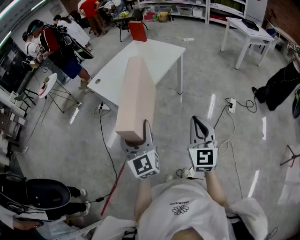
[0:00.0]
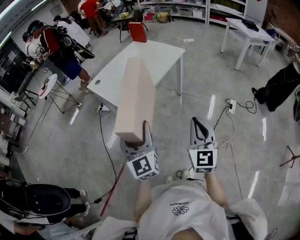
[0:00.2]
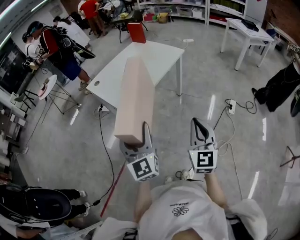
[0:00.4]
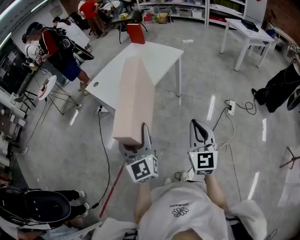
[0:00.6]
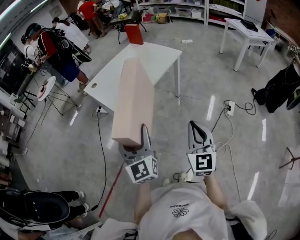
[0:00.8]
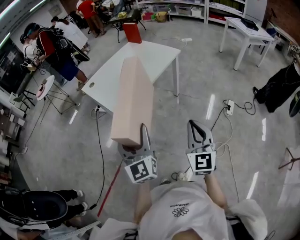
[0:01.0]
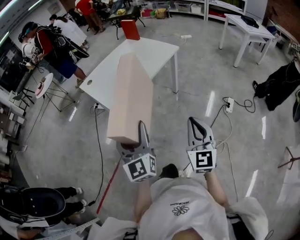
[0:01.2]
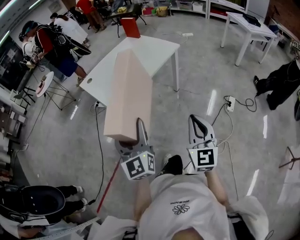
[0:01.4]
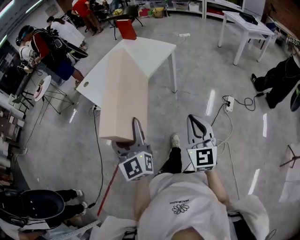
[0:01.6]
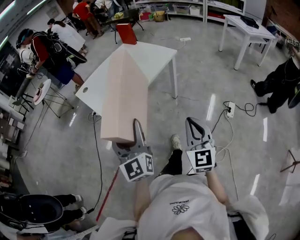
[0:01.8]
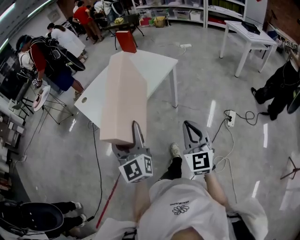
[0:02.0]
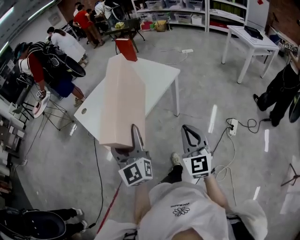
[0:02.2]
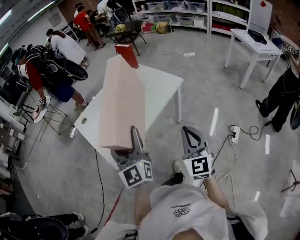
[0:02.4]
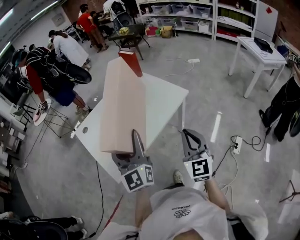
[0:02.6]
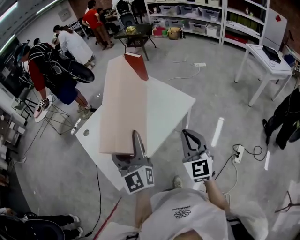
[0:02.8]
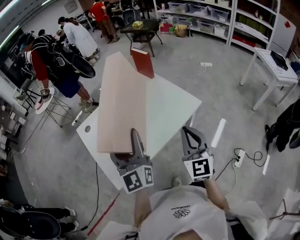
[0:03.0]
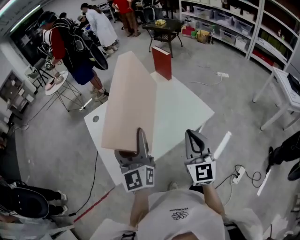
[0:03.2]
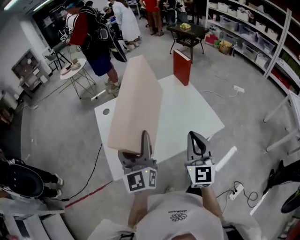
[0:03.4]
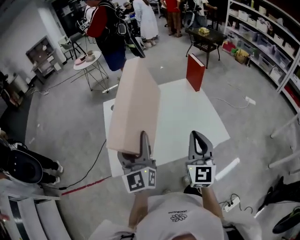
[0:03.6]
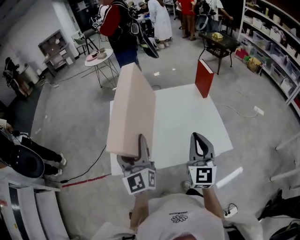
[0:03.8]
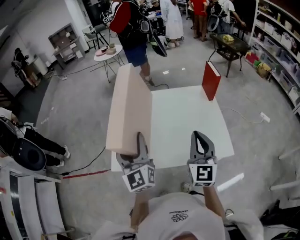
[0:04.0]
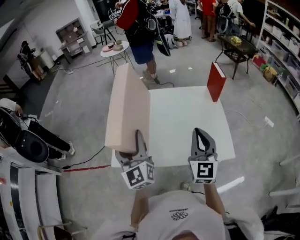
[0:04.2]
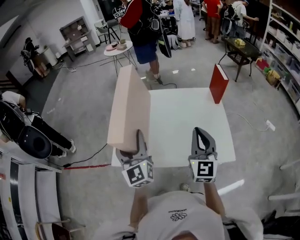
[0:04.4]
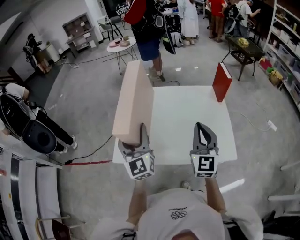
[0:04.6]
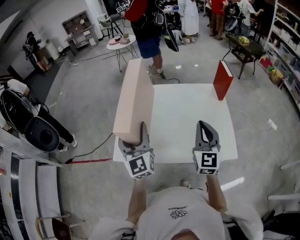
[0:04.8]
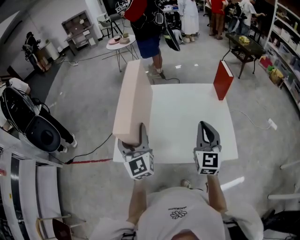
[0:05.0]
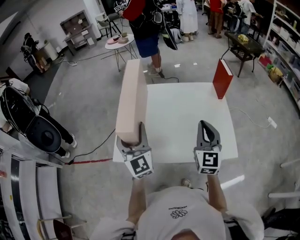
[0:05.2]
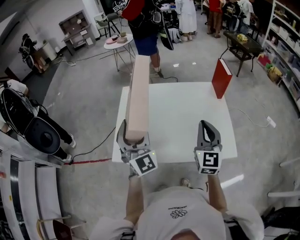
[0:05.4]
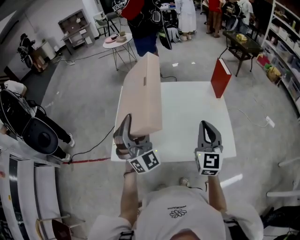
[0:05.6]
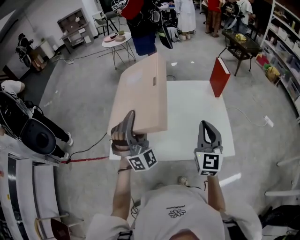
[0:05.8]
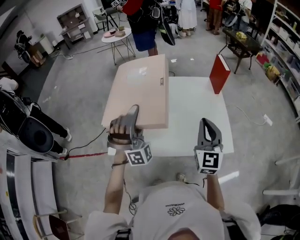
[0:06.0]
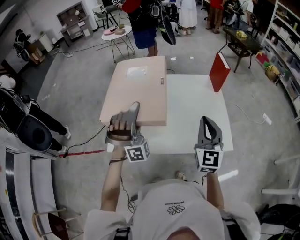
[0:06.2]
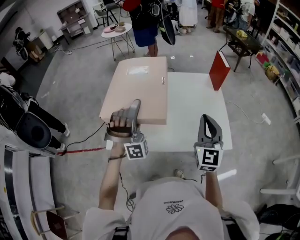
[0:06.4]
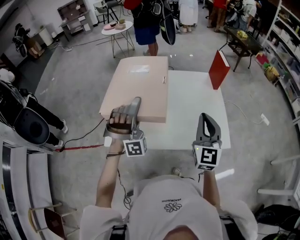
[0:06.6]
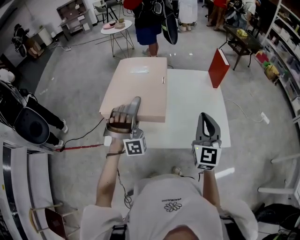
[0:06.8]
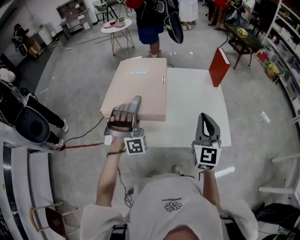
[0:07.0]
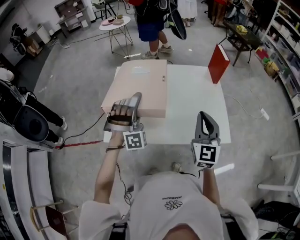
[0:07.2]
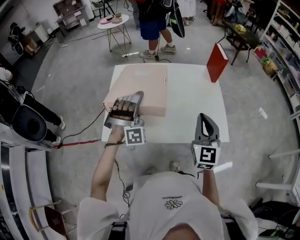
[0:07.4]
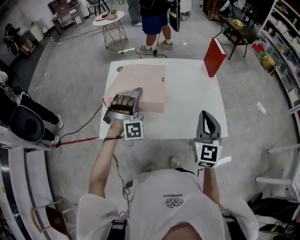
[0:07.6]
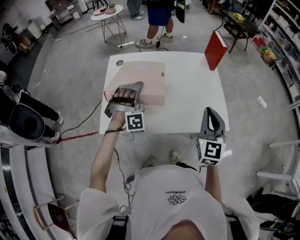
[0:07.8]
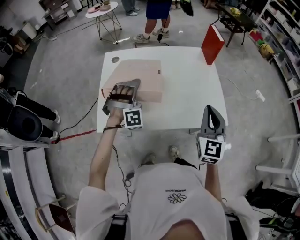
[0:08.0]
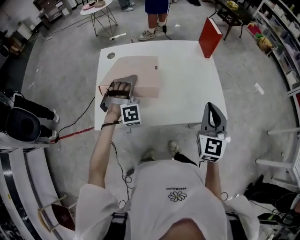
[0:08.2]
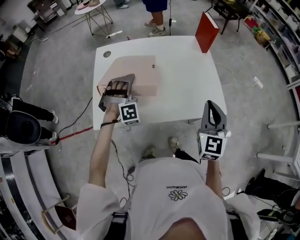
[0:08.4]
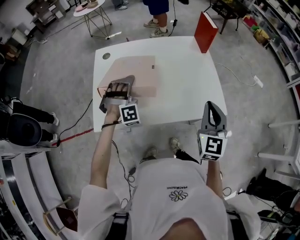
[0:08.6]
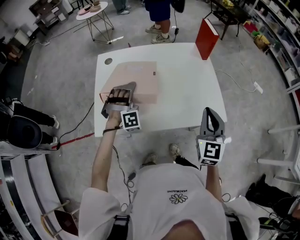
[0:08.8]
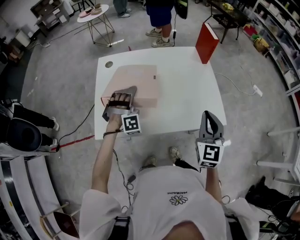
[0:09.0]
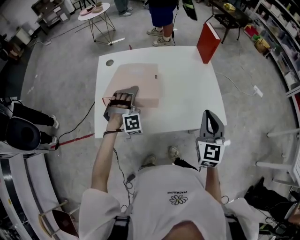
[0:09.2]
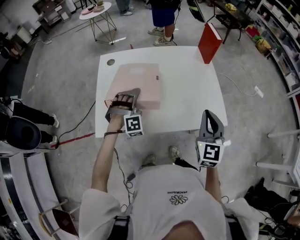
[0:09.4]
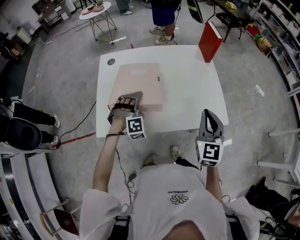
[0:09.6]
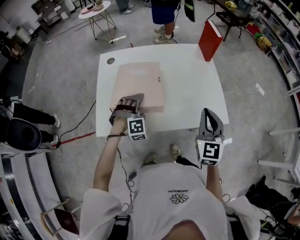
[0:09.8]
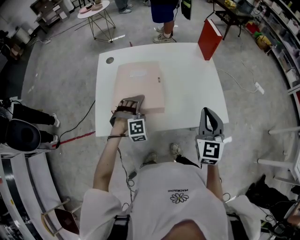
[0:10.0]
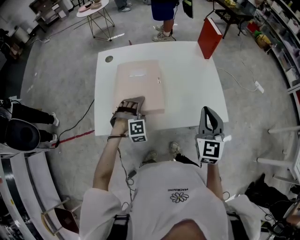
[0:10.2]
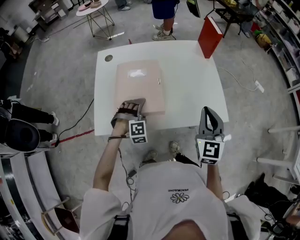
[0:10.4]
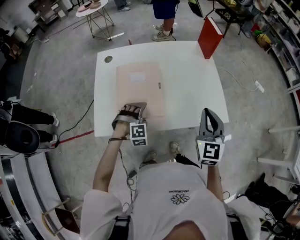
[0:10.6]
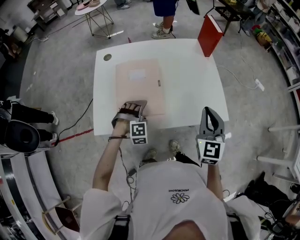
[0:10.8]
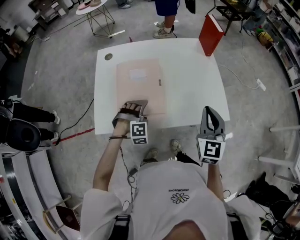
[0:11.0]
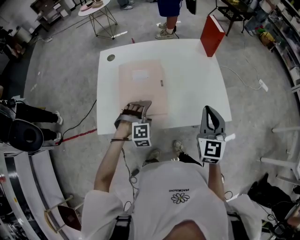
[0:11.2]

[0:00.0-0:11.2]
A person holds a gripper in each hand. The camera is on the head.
0:00.0 to 0:01.6: The right gripper heads to the right and forward, covering about 10 cm. Meanwhile the left gripper travels to the right by about 10 cm.
0:01.6 to 0:03.2: The two grippers travel together, forward, roughly 50 cm. The right gripper turns by some 20 degrees.
0:03.2 to 0:04.8: The right gripper shifts by about 20 cm, and swivels approximately 30 degrees, while the left gripper changes place by some 10 cm, and changes its angle by approximately 40 degrees.
0:04.8 to 0:06.4: The left gripper shifts by some 5 cm, and rolls clockwise, seen from behind, by approximately 90 degrees.
0:06.4 to 0:08.0: The right gripper changes place by about 10 cm. The left gripper shifts approximately 15 cm downward, and turns by roughly 30 degrees.
0:08.0 to 0:09.6: The left gripper heads downward, covering some 10 cm.
0:09.6 to 0:11.2: The left gripper heads backward, covering roughly 5 cm.

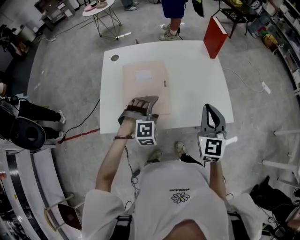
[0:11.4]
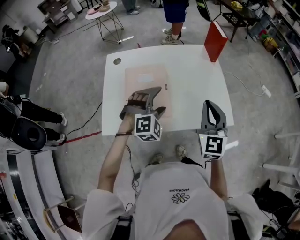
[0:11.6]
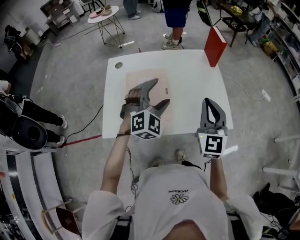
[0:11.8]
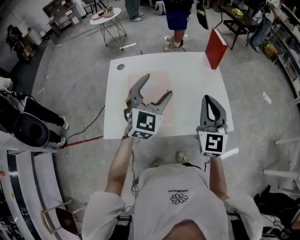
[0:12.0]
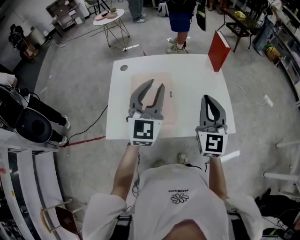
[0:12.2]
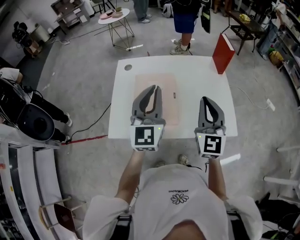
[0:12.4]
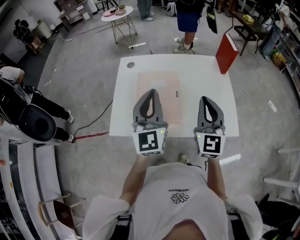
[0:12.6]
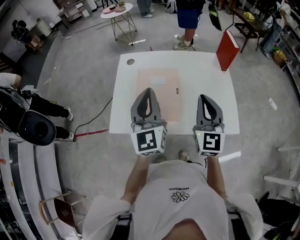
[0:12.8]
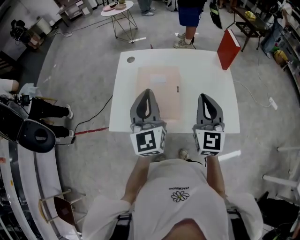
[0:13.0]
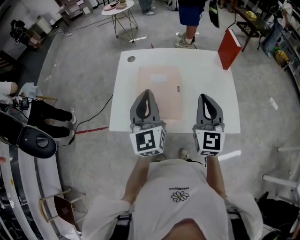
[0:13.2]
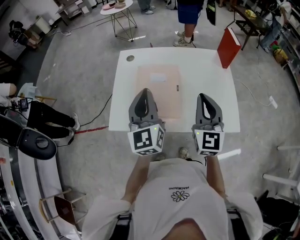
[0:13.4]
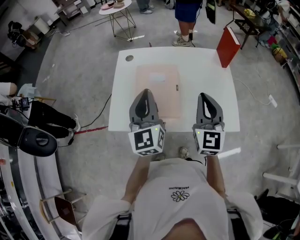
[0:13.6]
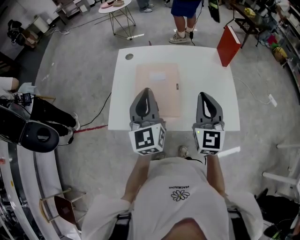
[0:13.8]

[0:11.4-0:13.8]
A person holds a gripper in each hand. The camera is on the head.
0:11.4 to 0:12.6: The right gripper shifts about 10 cm upward and to the left, while the left gripper moves upward, some 25 cm, tilts its fingers about 60 degrees upward, and closes up.
0:12.6 to 0:13.8: The grippers stay close to where they were, moving slightly.

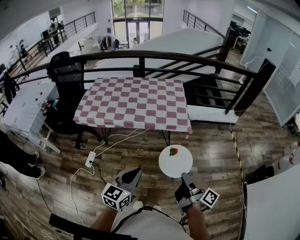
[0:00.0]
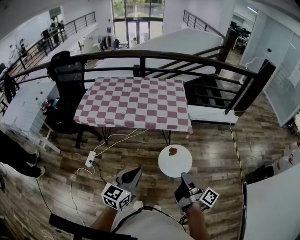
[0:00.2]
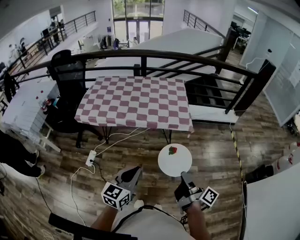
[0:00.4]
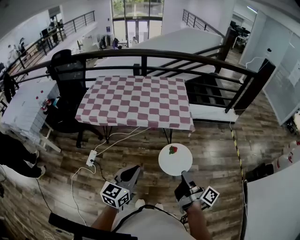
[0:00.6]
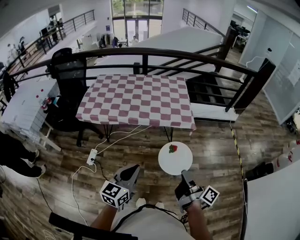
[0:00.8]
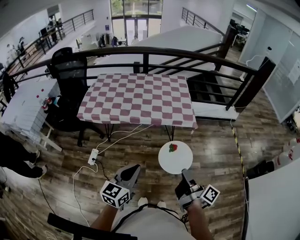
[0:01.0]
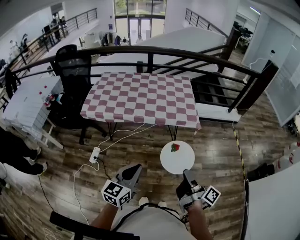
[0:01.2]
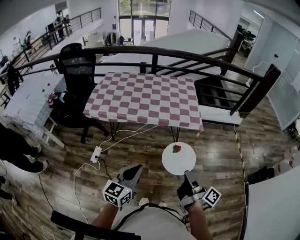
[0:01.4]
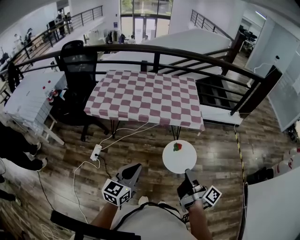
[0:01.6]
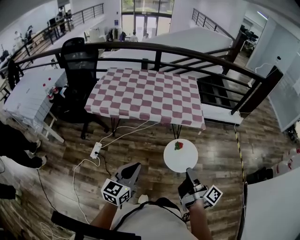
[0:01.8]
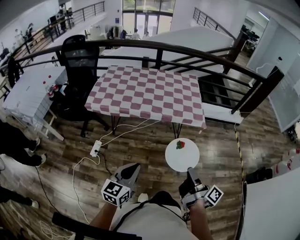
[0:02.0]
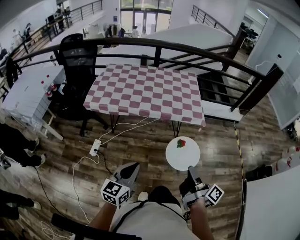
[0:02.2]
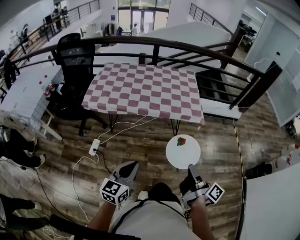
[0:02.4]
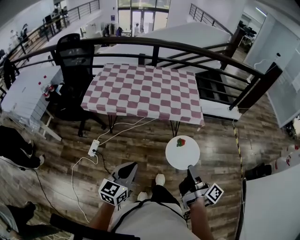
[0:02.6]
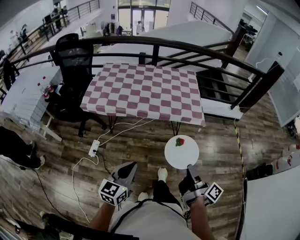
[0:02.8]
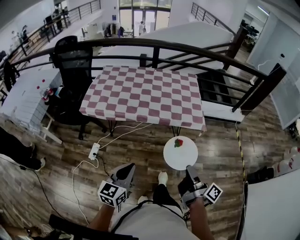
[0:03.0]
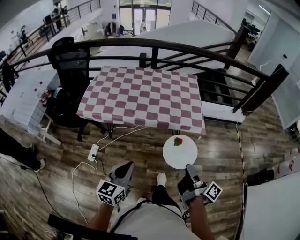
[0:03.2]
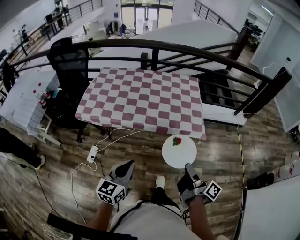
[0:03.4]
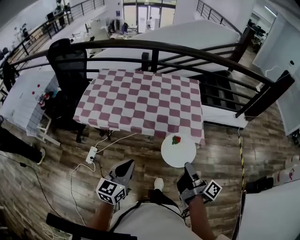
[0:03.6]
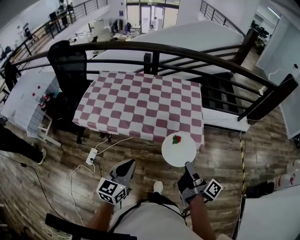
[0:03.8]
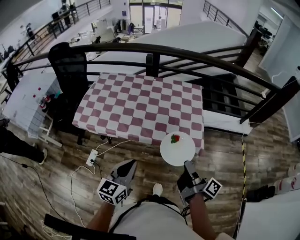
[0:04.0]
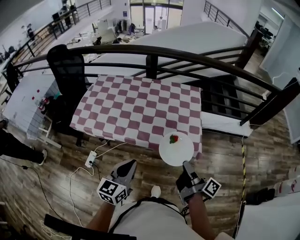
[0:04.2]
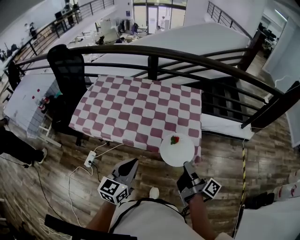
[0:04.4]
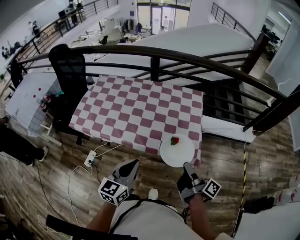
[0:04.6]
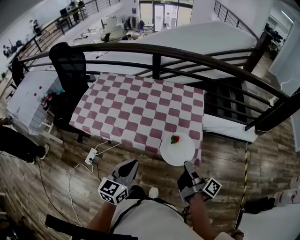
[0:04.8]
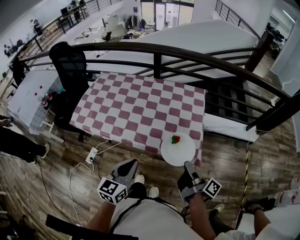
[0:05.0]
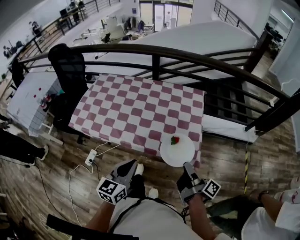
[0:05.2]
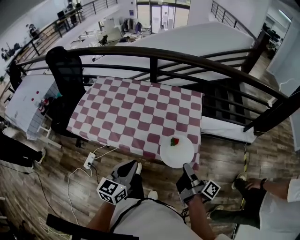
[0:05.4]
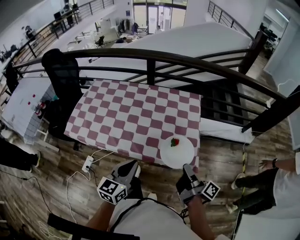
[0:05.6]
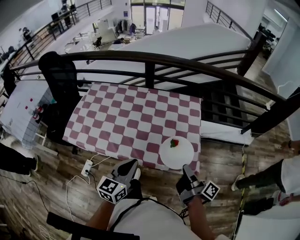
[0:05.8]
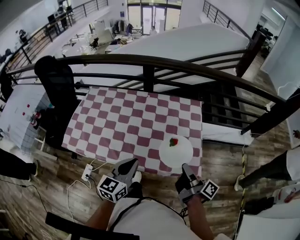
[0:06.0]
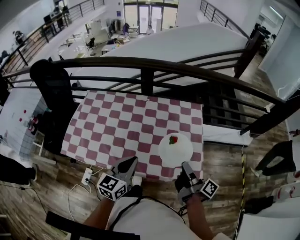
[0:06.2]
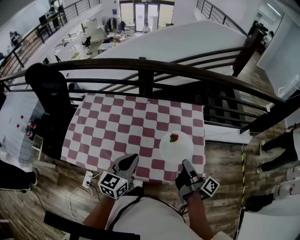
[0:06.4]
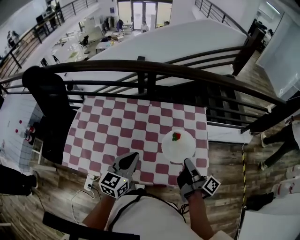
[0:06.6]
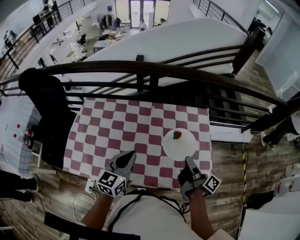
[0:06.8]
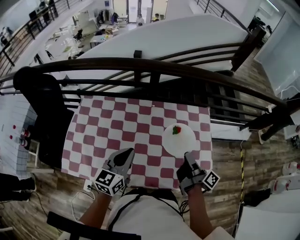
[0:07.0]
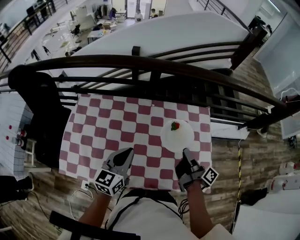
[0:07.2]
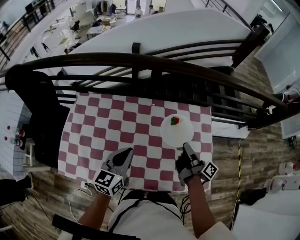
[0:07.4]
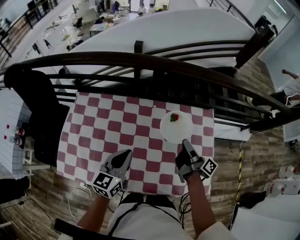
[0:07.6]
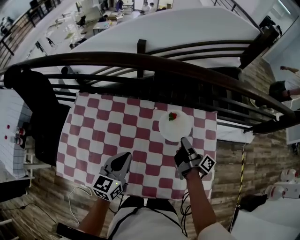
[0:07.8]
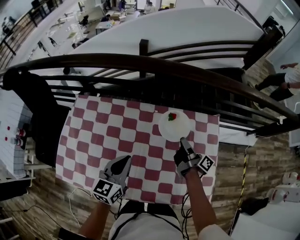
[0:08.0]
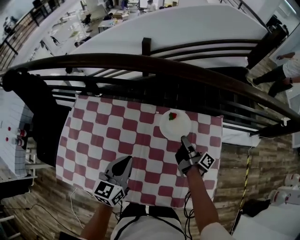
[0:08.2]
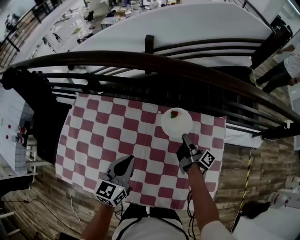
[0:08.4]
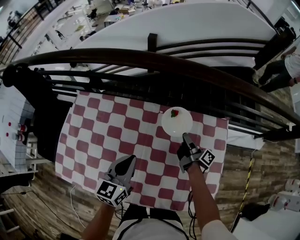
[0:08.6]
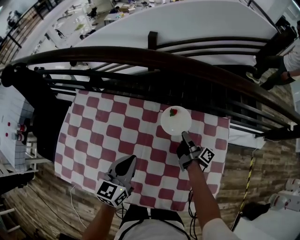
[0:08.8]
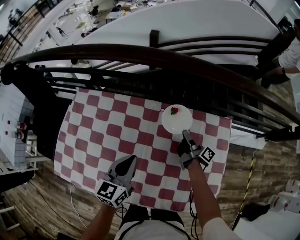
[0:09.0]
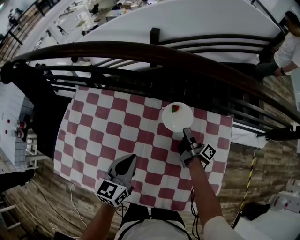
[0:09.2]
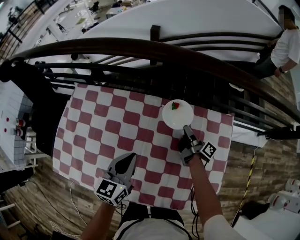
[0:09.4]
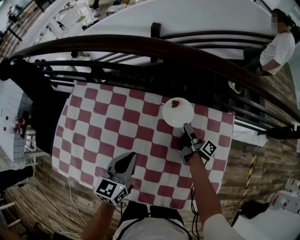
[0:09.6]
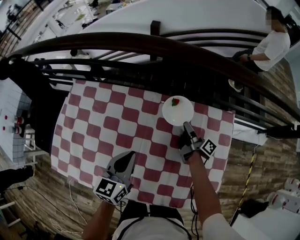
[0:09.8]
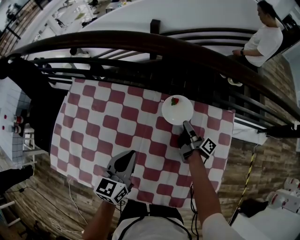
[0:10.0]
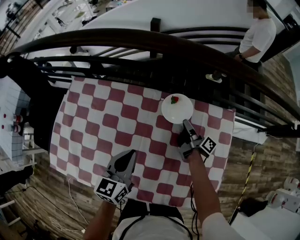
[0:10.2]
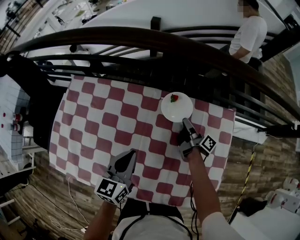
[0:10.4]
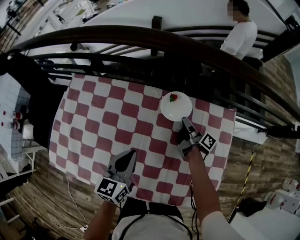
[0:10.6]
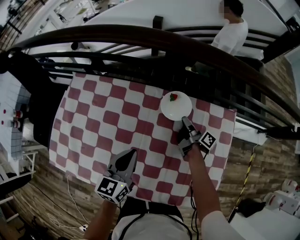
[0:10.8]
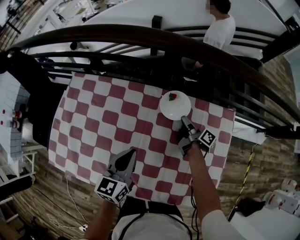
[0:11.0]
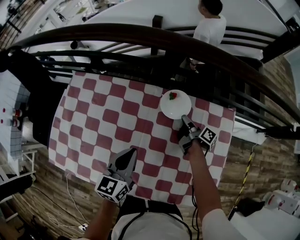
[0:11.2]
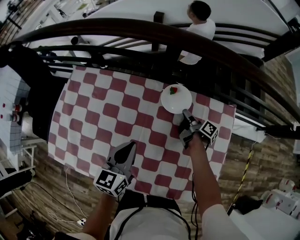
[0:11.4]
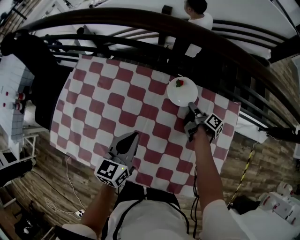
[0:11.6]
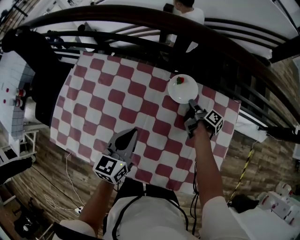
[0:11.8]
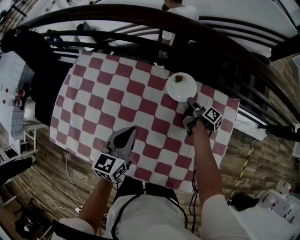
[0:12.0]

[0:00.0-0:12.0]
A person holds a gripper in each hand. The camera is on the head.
0:00.0 to 0:01.6: The left gripper shifts by about 15 cm.
0:01.6 to 0:03.0: The left gripper shifts by about 5 cm.
0:03.0 to 0:04.4: The left gripper changes place by about 30 cm.
0:04.4 to 0:06.0: The left gripper changes place by some 15 cm.
0:06.0 to 0:07.6: The left gripper shifts by approximately 30 cm.
0:07.6 to 0:09.0: The left gripper ends up about 10 cm from where it was.
